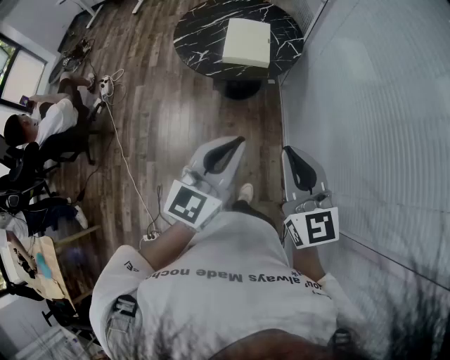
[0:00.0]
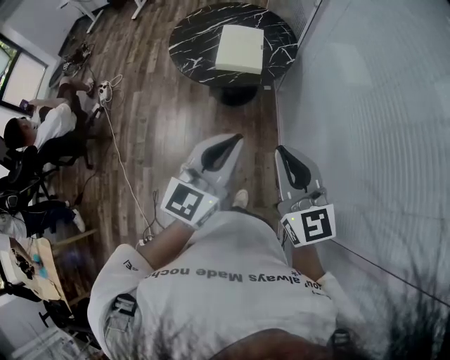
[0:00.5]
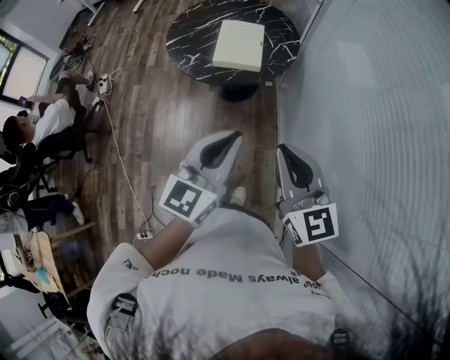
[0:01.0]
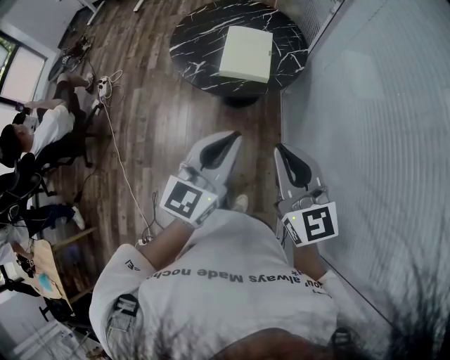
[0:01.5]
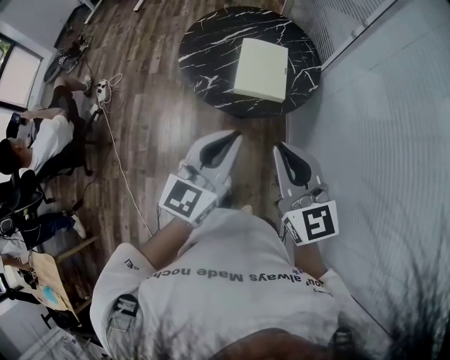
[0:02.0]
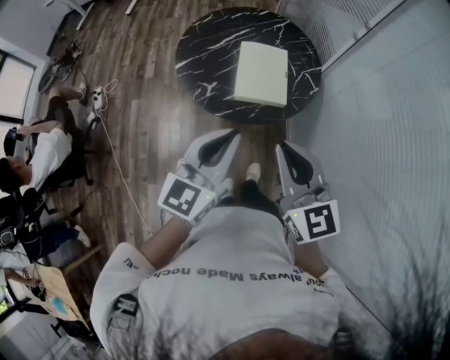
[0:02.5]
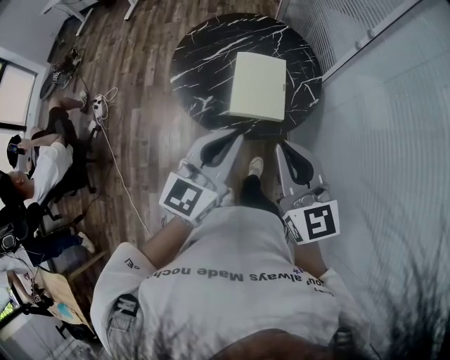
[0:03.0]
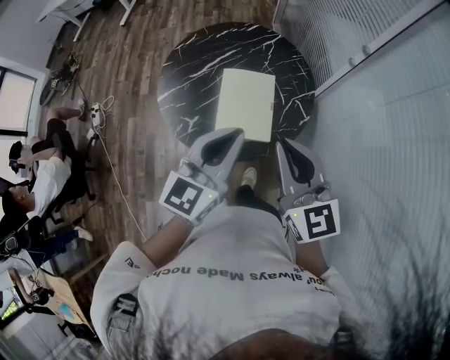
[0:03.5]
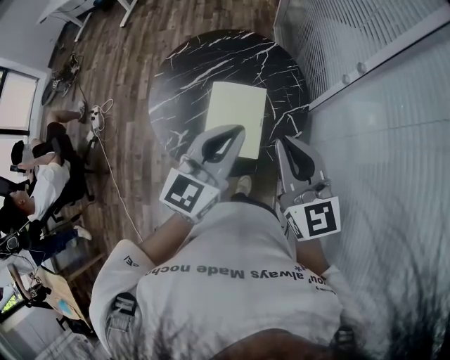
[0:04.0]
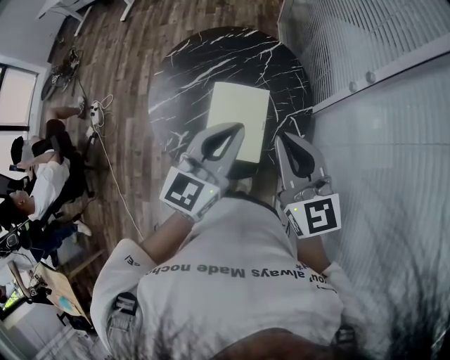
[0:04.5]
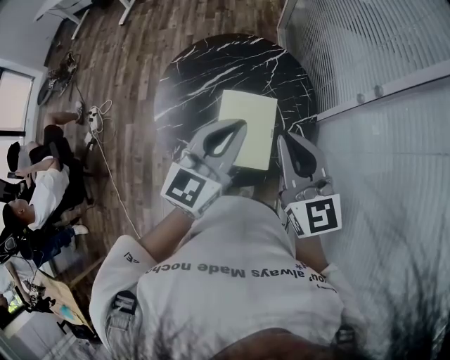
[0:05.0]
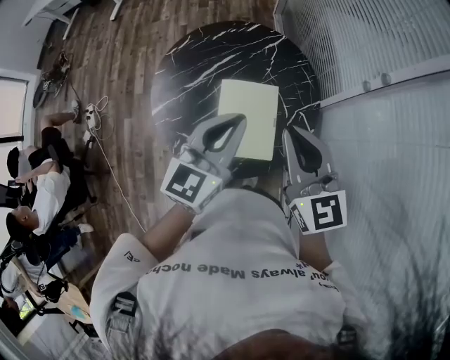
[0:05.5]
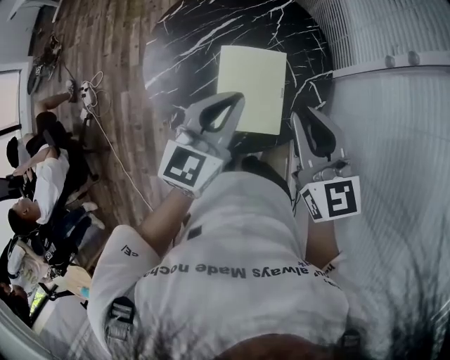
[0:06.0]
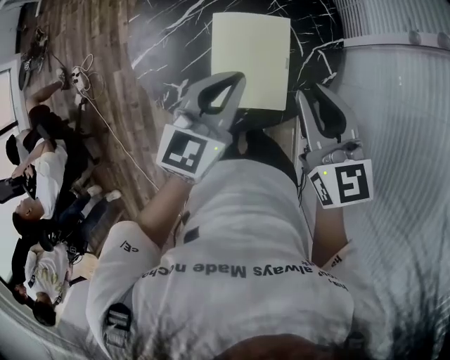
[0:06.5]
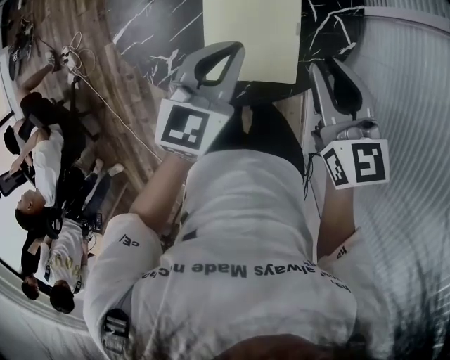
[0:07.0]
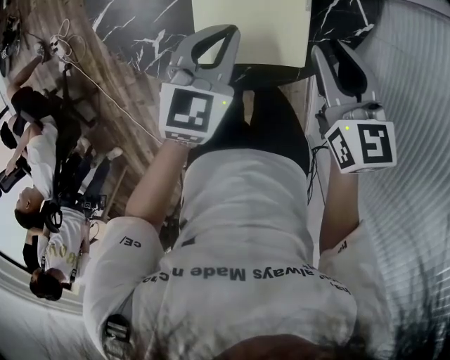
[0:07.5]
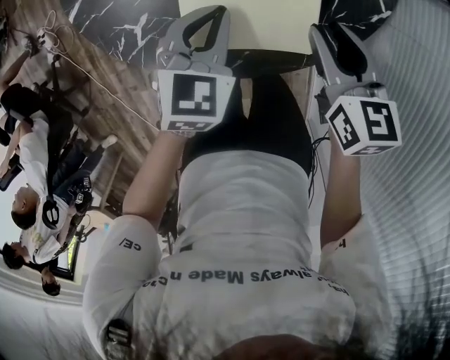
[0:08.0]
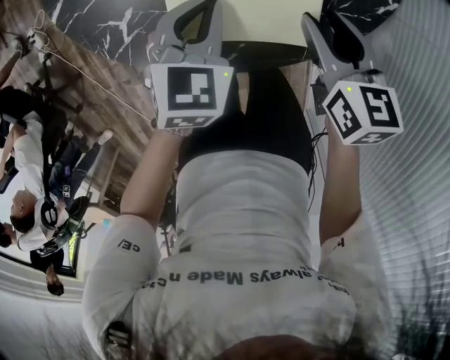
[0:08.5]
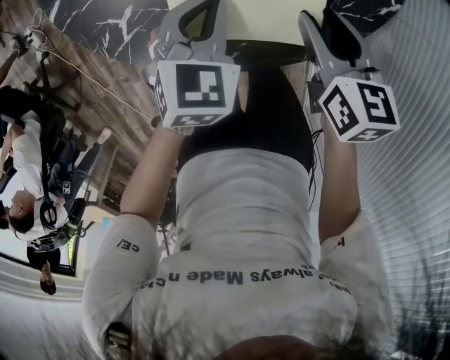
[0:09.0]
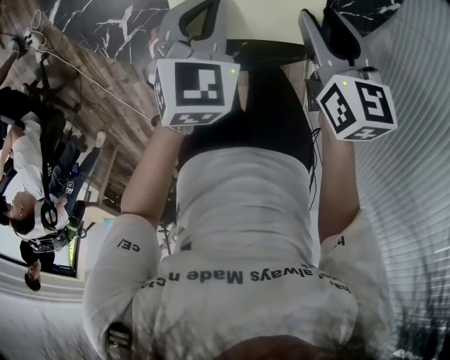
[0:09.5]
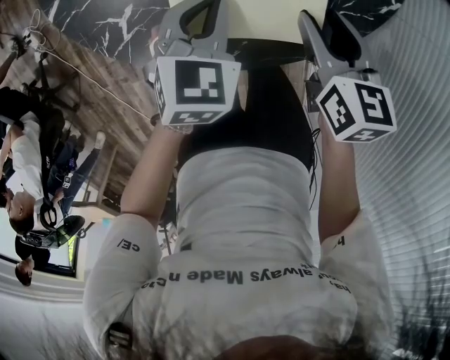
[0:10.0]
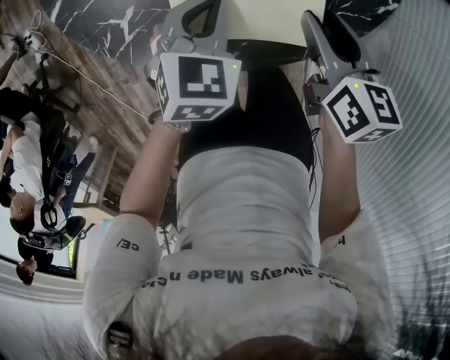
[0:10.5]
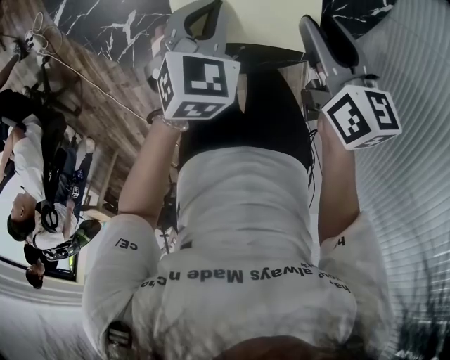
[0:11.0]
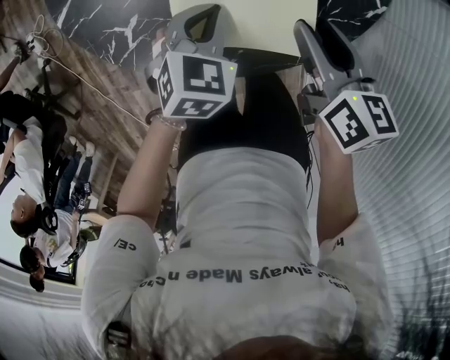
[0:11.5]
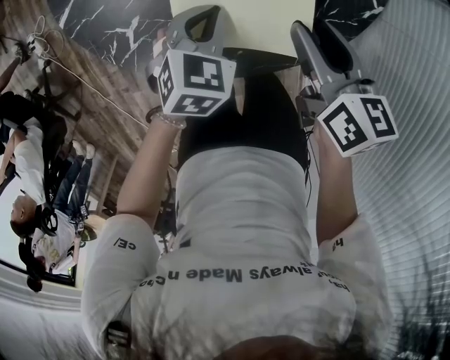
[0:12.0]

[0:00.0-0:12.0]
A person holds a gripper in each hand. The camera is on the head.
0:00.0 to 0:02.0: The right gripper goes roughly 25 cm forward and to the left; the left gripper travels forward by roughly 25 cm.
0:02.0 to 0:04.0: The grippers both shift forward by about 35 cm.
0:04.0 to 0:06.0: The right gripper travels downward, forward and to the left by some 10 cm. Meanwhile the left gripper heads downward, to the left and forward, covering about 15 cm.
0:06.0 to 0:08.0: Both grippers move downward, about 35 cm. The right gripper changes its angle by about 30 degrees. Meanwhile the left gripper rotates roughly 30 degrees.
0:08.0 to 0:10.0: There are only small adjustments of the grippers.
0:10.0 to 0:12.0: The right gripper goes some 5 cm upward.

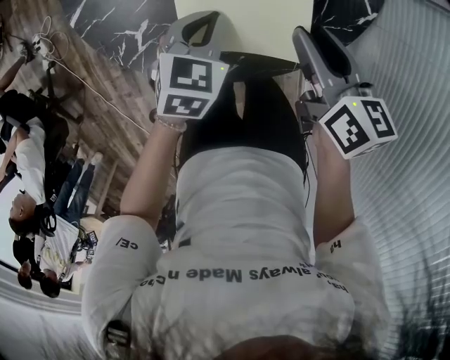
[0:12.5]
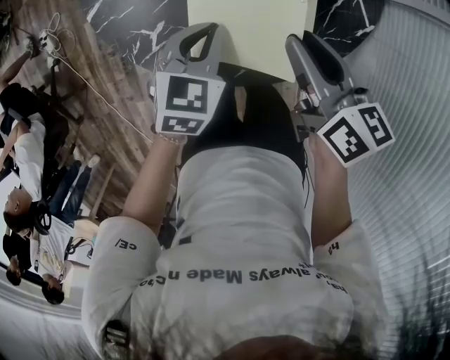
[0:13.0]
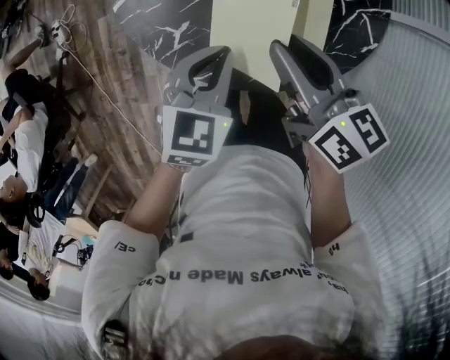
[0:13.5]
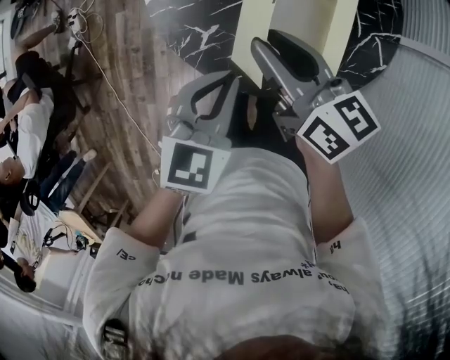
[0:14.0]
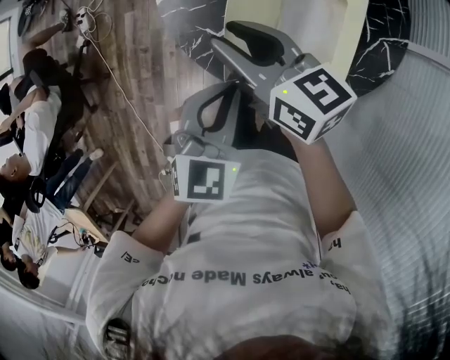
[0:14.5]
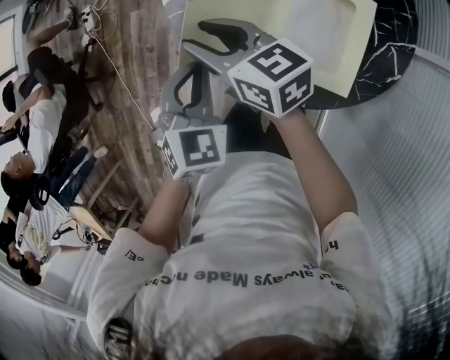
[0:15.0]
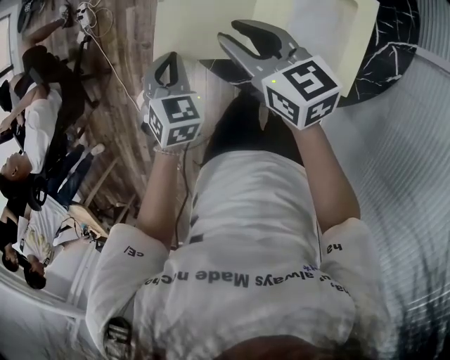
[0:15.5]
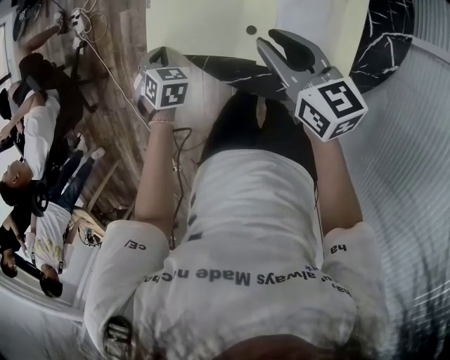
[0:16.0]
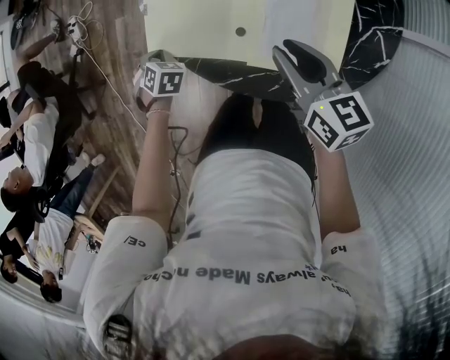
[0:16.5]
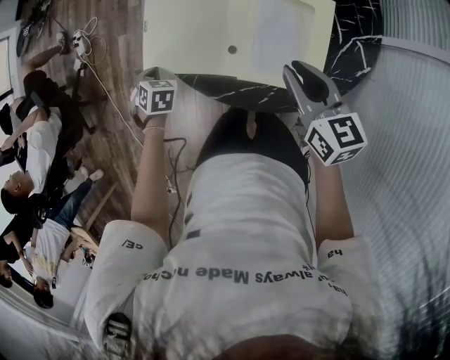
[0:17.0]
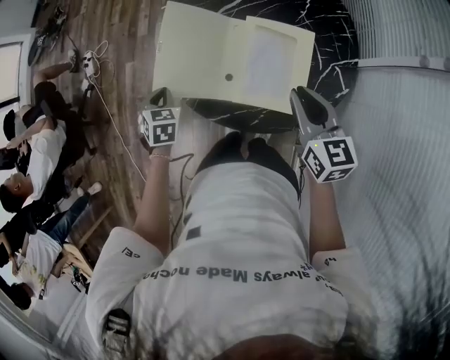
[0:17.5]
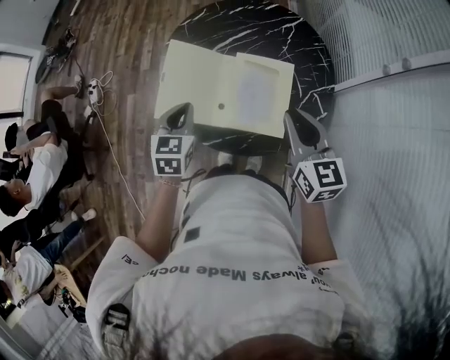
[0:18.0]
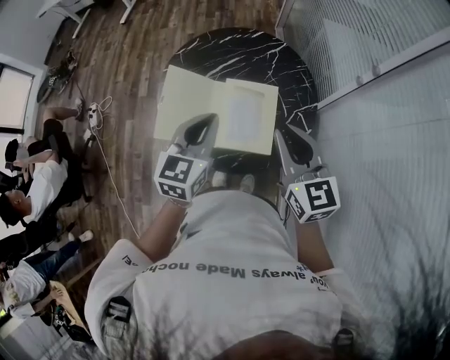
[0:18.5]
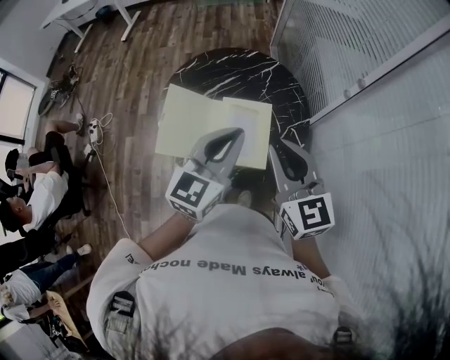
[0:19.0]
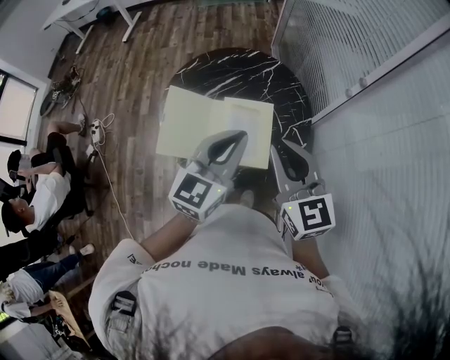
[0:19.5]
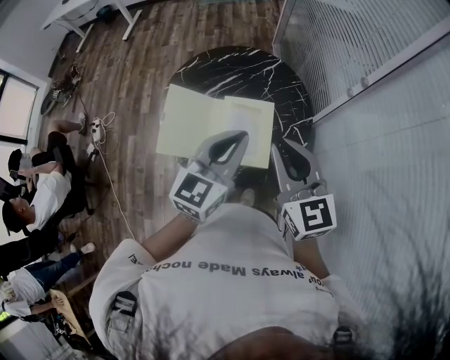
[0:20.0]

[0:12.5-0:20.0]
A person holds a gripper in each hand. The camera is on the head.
0:12.5 to 0:14.5: The right gripper heads to the left and upward, covering about 30 cm, and swivels approximately 40 degrees; the left gripper is displaced upward, to the left and backward by roughly 25 cm.
0:14.5 to 0:16.5: The left gripper is displaced downward, forward and to the left by about 35 cm, and turns by roughly 40 degrees. Meanwhile the right gripper heads to the right, backward and downward, covering about 15 cm.
0:16.5 to 0:18.0: The right gripper shifts roughly 20 cm upward, and rotates about 20 degrees, while the left gripper heads upward, covering approximately 35 cm, and tips its fingers upward by approximately 30 degrees.
0:18.0 to 0:20.0: The right gripper moves upward, approximately 15 cm. Meanwhile the left gripper heads upward and to the right, covering roughly 30 cm, and rotates about 40 degrees.

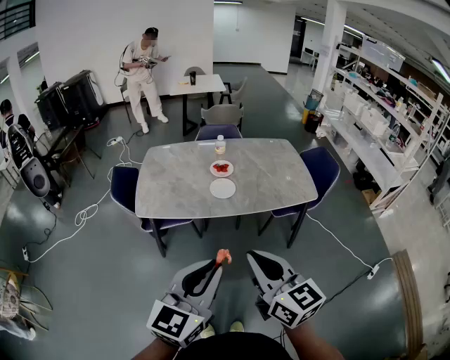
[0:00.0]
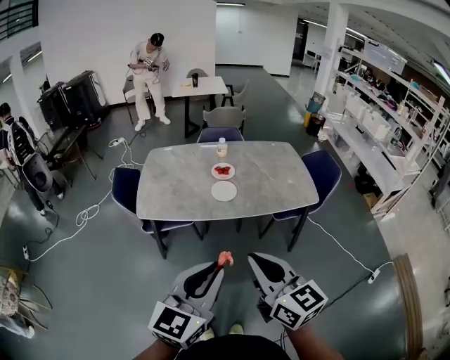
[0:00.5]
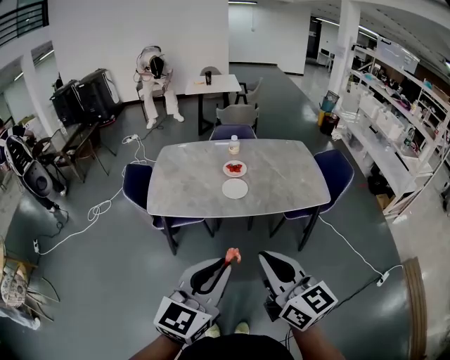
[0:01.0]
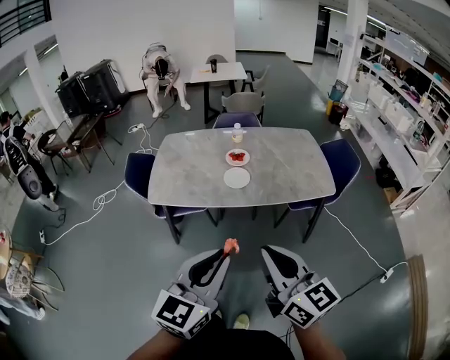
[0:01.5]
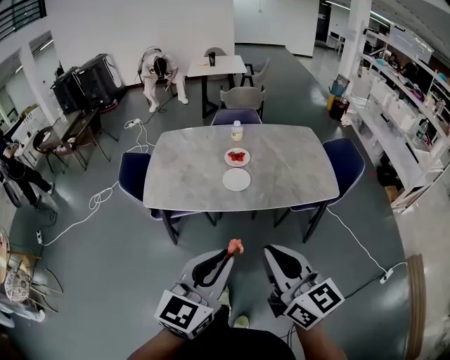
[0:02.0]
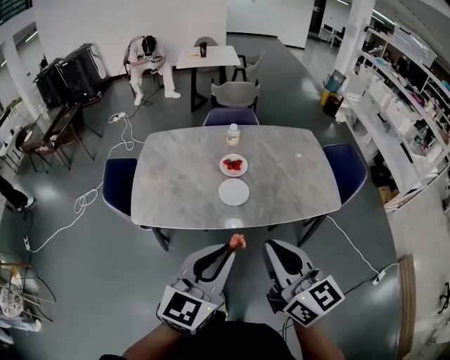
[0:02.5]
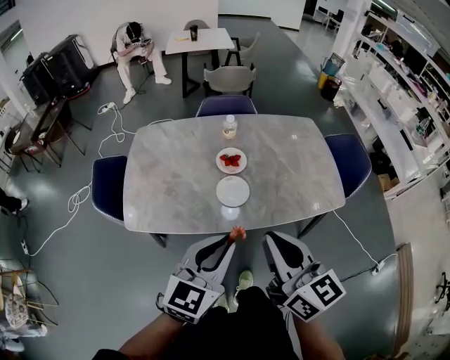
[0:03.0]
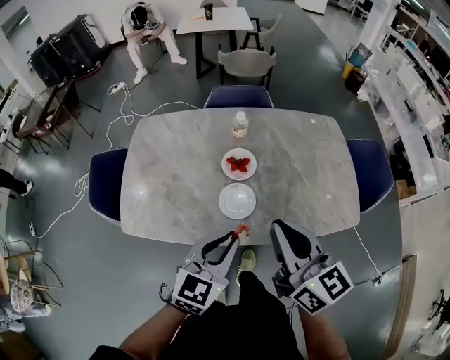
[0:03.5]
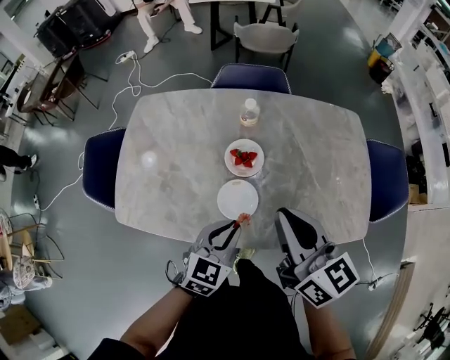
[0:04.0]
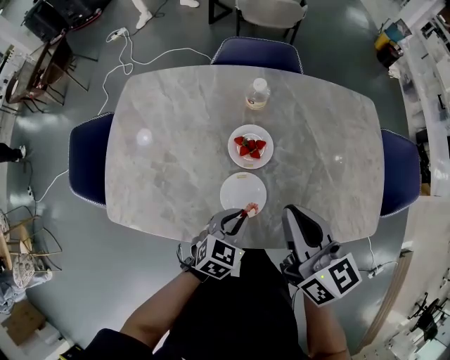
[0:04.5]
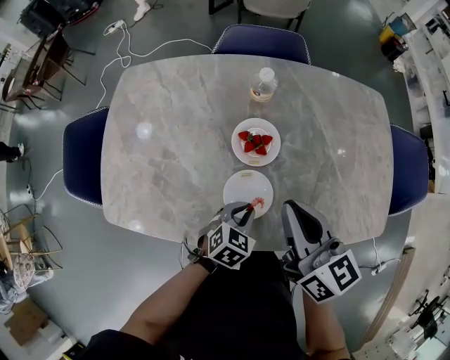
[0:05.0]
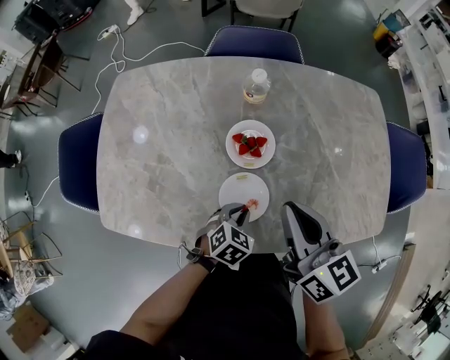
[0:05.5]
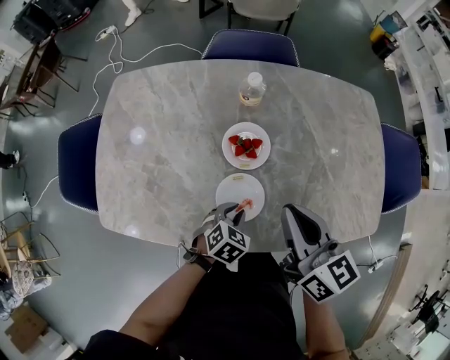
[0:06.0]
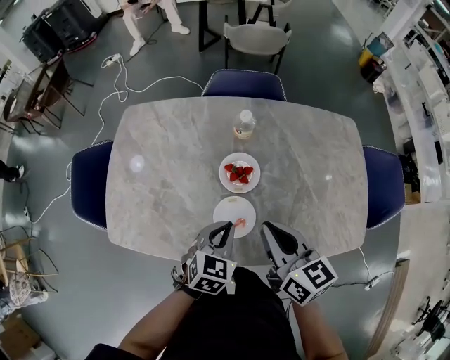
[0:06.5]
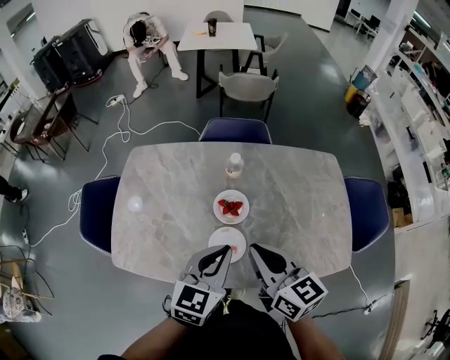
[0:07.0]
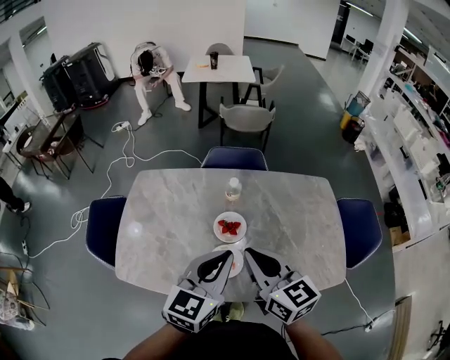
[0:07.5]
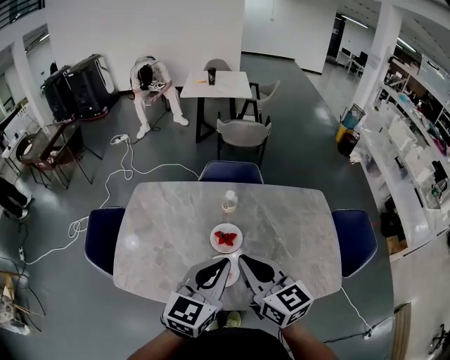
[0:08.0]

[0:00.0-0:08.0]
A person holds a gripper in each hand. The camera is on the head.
0:00.0 to 0:02.0: The two grippers go some 5 cm forward.
0:02.0 to 0:04.0: The two grippers travel together, forward, roughly 50 cm. The left gripper goes about 25 cm downward, and turns by roughly 30 degrees.
0:04.0 to 0:06.0: The left gripper goes about 20 cm downward, and changes its angle by about 30 degrees; the right gripper shifts roughly 10 cm downward.
0:06.0 to 0:08.0: The left gripper is displaced upward by roughly 40 cm, and tilts its fingers about 50 degrees upward, while the right gripper moves upward, about 15 cm.
